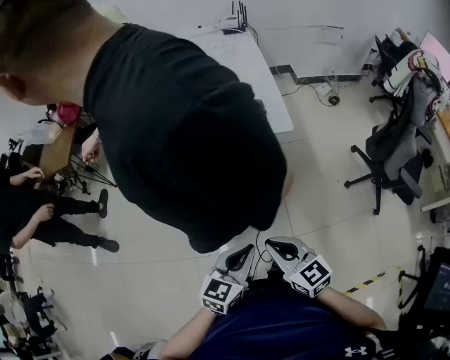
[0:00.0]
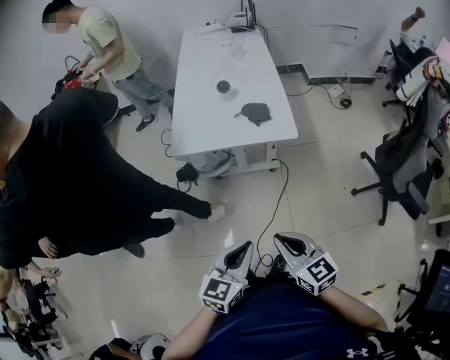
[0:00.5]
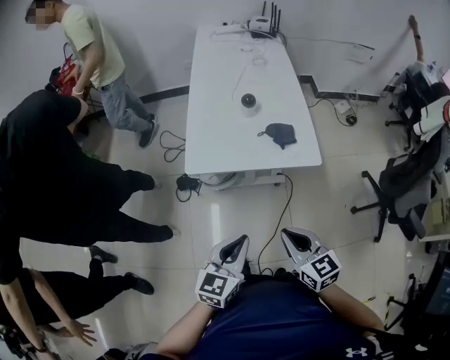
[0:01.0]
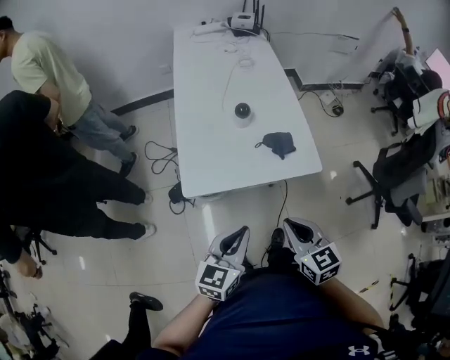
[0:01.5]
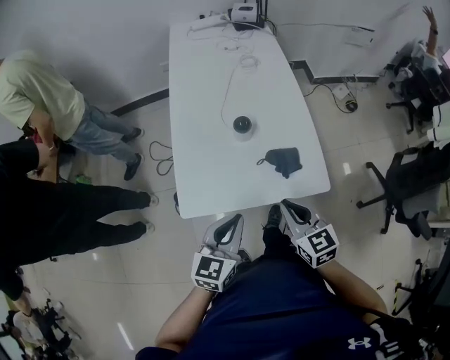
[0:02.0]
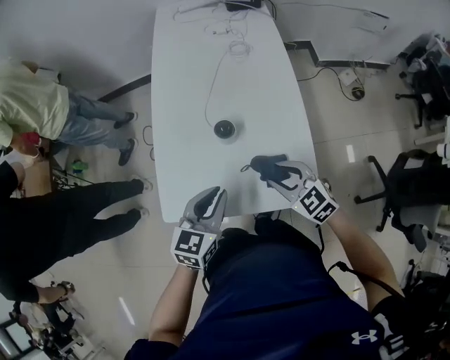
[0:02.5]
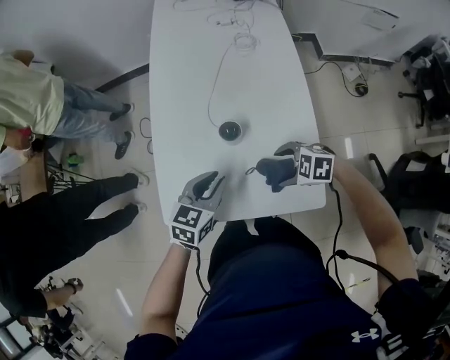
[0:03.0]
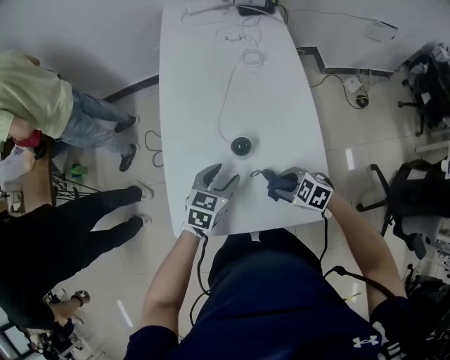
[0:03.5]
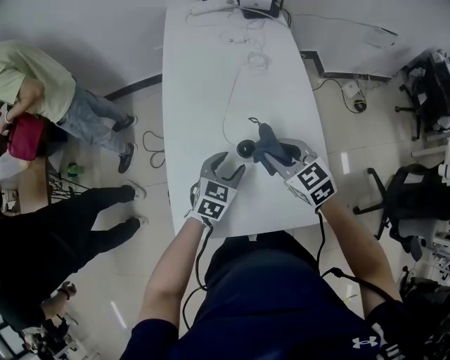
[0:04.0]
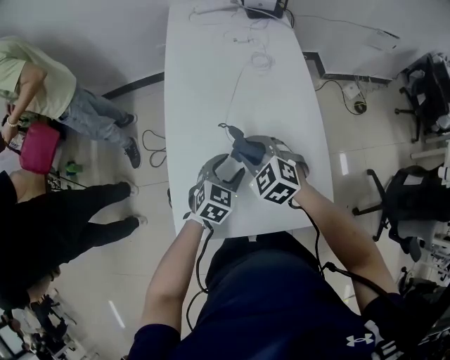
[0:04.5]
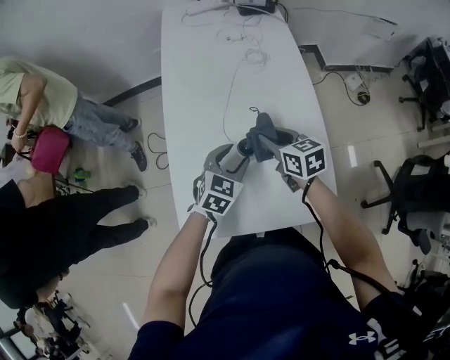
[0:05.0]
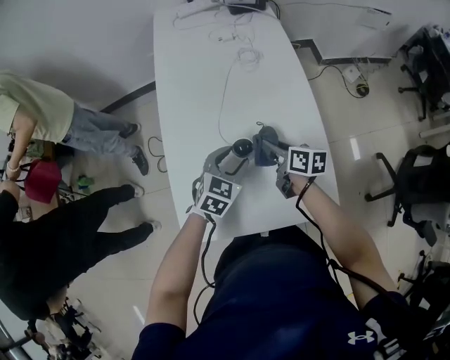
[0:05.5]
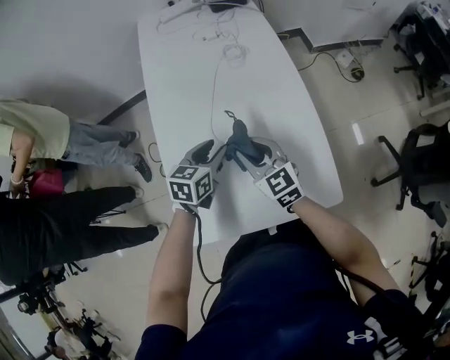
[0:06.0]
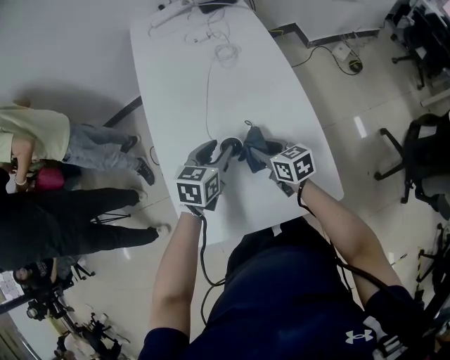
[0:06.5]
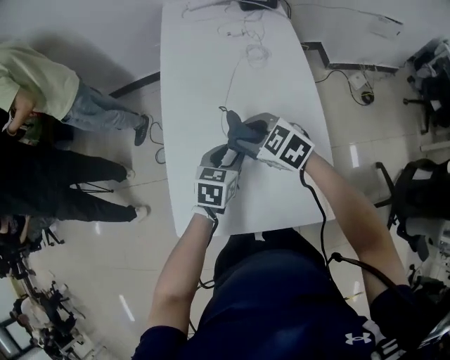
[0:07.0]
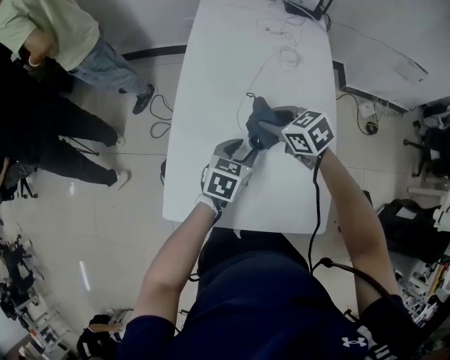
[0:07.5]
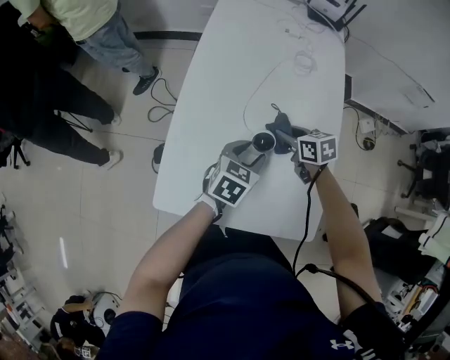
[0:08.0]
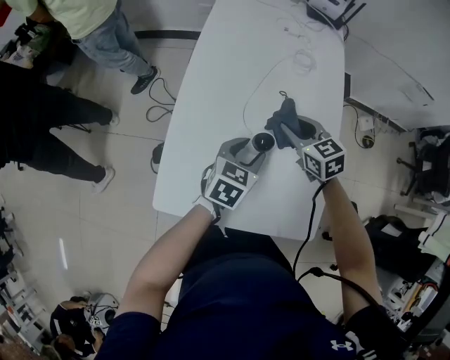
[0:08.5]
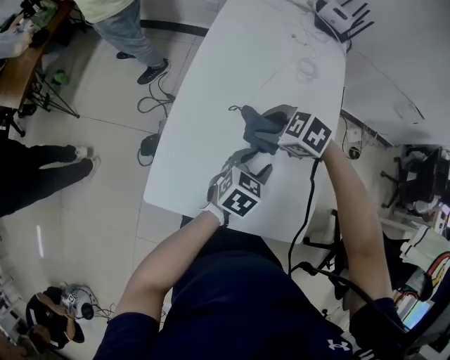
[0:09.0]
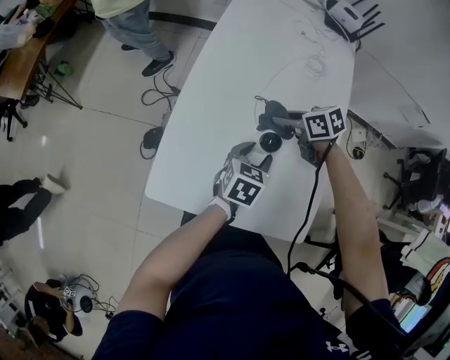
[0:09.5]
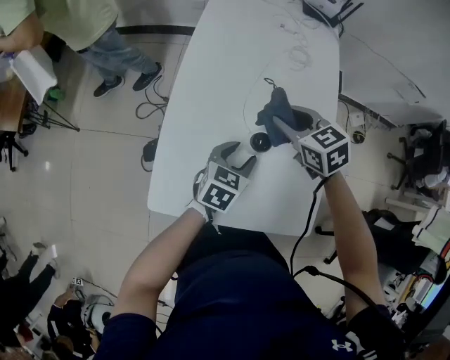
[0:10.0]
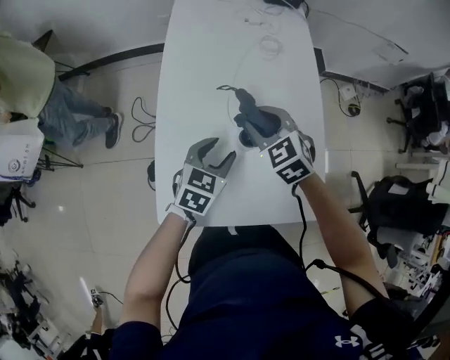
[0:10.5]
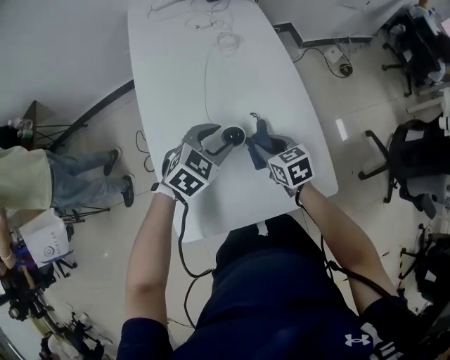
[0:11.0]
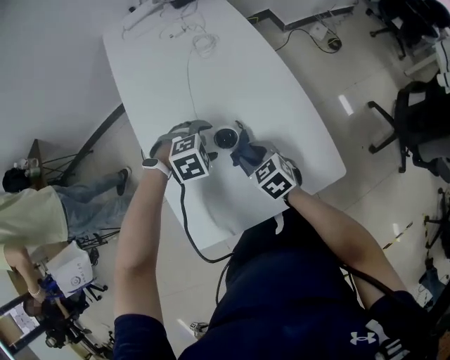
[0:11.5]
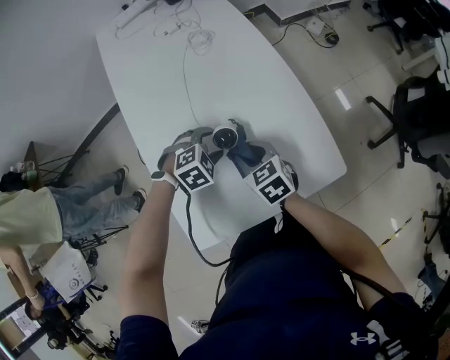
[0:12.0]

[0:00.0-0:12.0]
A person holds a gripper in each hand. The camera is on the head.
0:00.0 to 0:02.0: The pair of grippers is taken forward, roughly 40 cm.
0:02.0 to 0:04.0: The right gripper goes downward and returns, roughly 15 cm each way, changes its angle by roughly 20 degrees, and opens. Meanwhile the left gripper ends up approximately 30 cm from where it was, changes its angle by some 20 degrees, and opens up.
0:04.0 to 0:06.0: The left gripper ends up roughly 5 cm from where it was. The right gripper goes left and right, about 10 cm each way, reversing 2 times.
0:06.0 to 0:08.0: The left gripper moves about 5 cm. Meanwhile the right gripper swings up and down, approximately 10 cm each way, with 2 reversals, and rotates approximately 40 degrees.
0:08.0 to 0:10.0: The right gripper swings up and down, roughly 10 cm each way, with 2 reversals, and swivels about 20 degrees.
0:10.0 to 0:12.0: The left gripper shifts some 5 cm downward, and twists approximately 70 degrees clockwise, seen from behind. The right gripper moves roughly 15 cm, and turns by approximately 30 degrees.

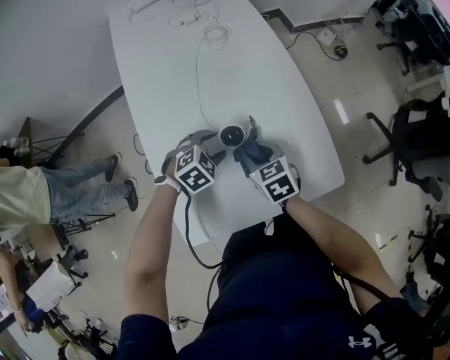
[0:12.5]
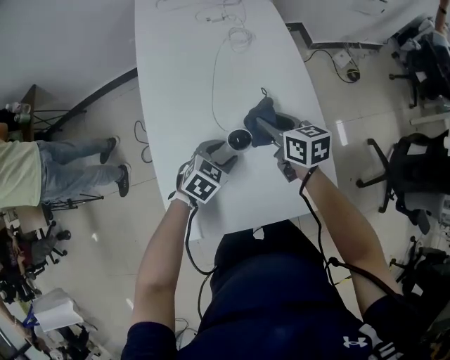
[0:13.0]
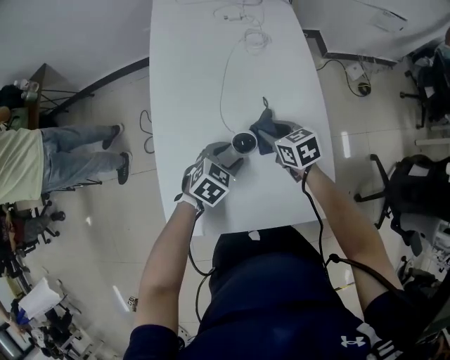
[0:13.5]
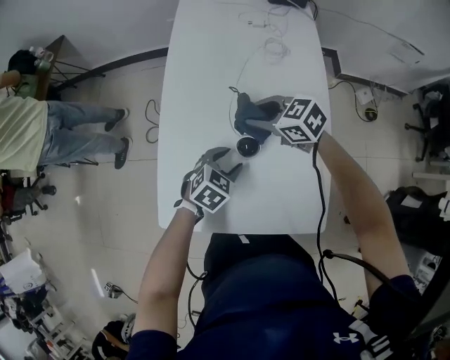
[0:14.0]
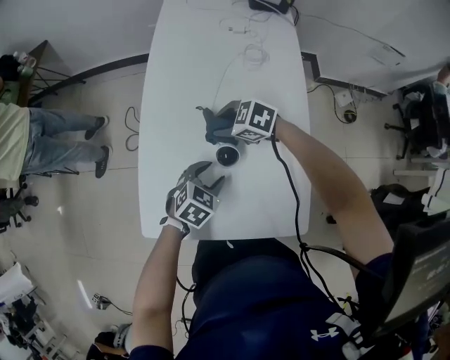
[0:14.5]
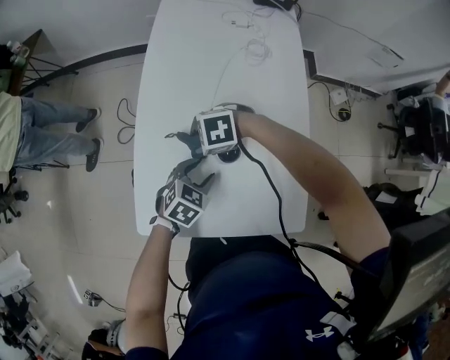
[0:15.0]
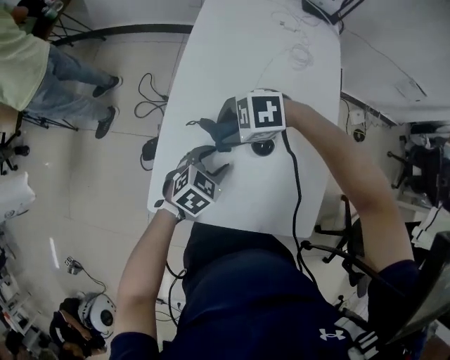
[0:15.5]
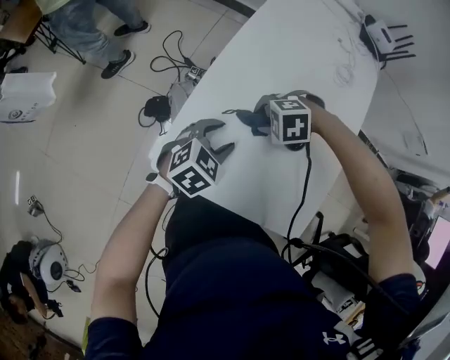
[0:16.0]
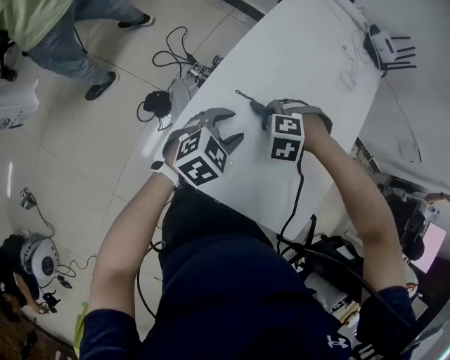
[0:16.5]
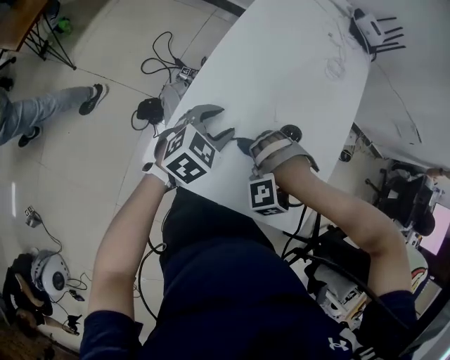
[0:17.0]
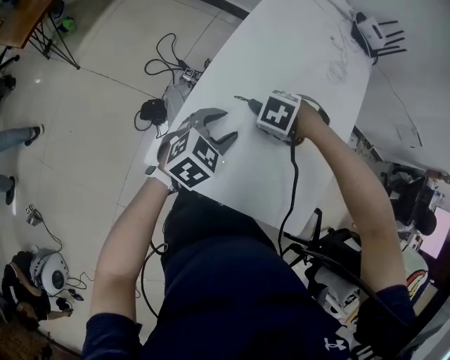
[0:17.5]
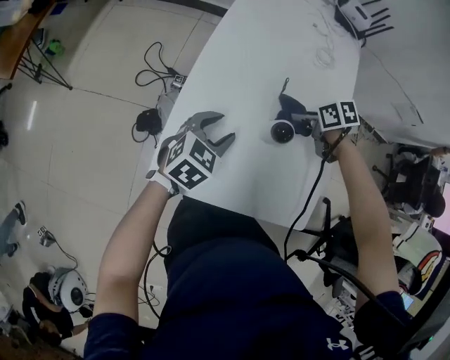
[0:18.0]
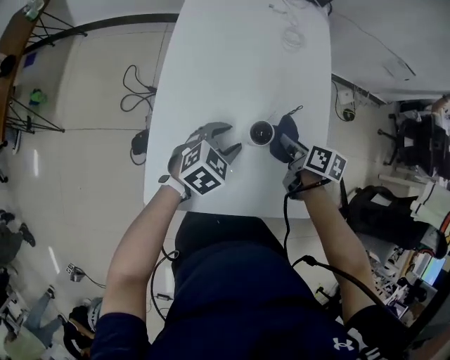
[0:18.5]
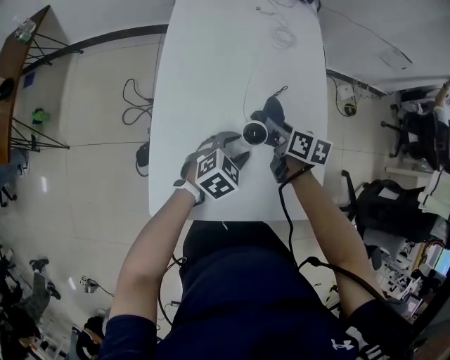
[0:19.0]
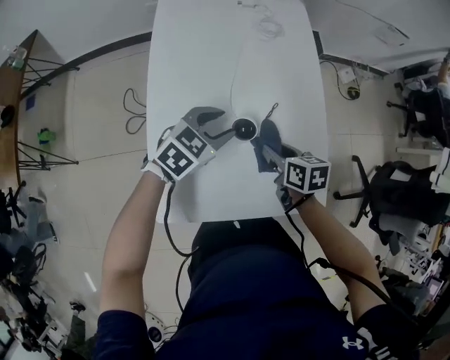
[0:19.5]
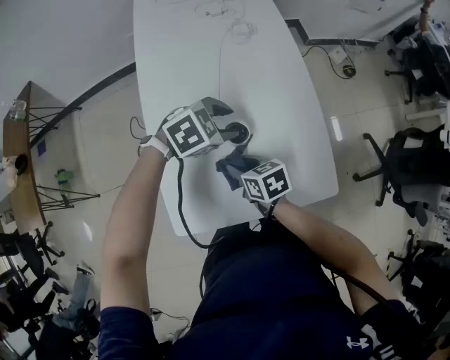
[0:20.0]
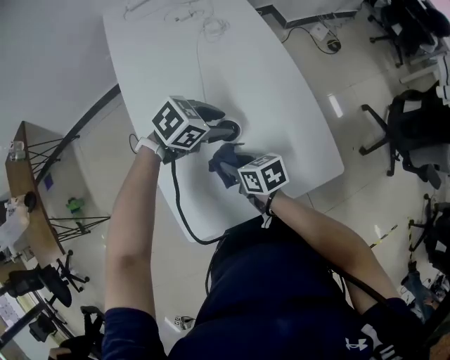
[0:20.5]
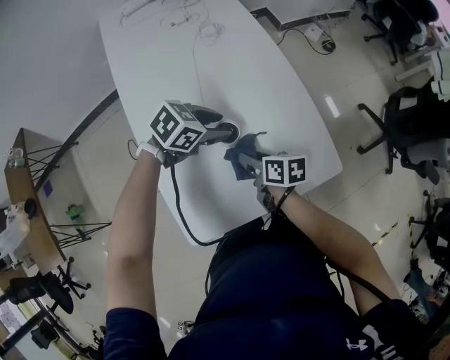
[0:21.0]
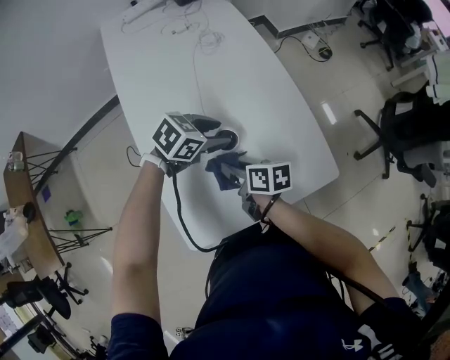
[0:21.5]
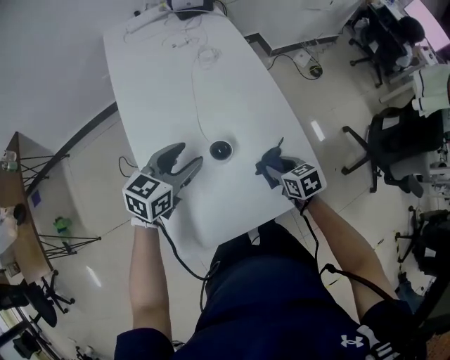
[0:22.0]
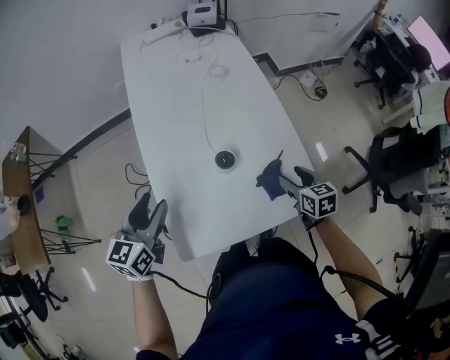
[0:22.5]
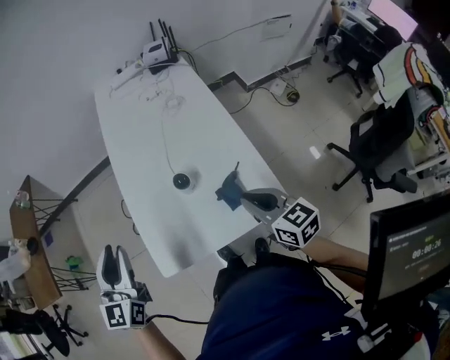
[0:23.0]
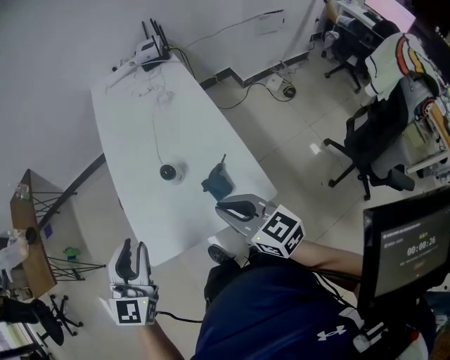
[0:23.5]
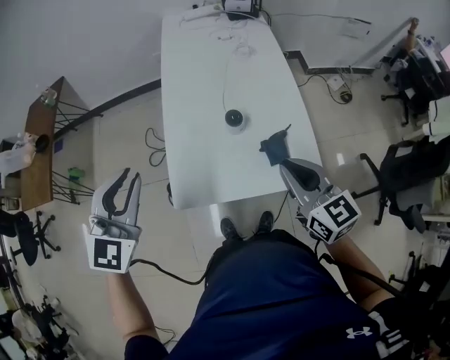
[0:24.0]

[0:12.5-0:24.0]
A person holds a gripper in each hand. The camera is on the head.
0:12.5 to 0:14.5: The left gripper rotates some 40 degrees; the right gripper goes up and down, some 10 cm each way, reversing 3 times, and swivels some 70 degrees.
0:14.5 to 0:16.5: The left gripper moves about 15 cm, while the right gripper shifts by roughly 10 cm, and tilts its fingers about 30 degrees downward.
0:16.5 to 0:18.5: The right gripper ends up roughly 20 cm from where it was, and rolls clockwise, seen from behind, by about 130 degrees. Meanwhile the left gripper ends up roughly 10 cm from where it was, and swivels approximately 20 degrees.
0:18.5 to 0:20.0: The right gripper shifts by some 15 cm. Meanwhile the left gripper moves some 10 cm, and swivels approximately 40 degrees.
0:20.0 to 0:22.0: The right gripper moves some 20 cm. Meanwhile the left gripper shifts by some 10 cm, and rotates some 40 degrees.
0:22.0 to 0:24.0: The right gripper moves upward, some 30 cm, angles its fingers upward, by roughly 40 degrees, and closes; the left gripper moves upward, backward and to the left, roughly 30 cm, turns by some 50 degrees, and closes up.

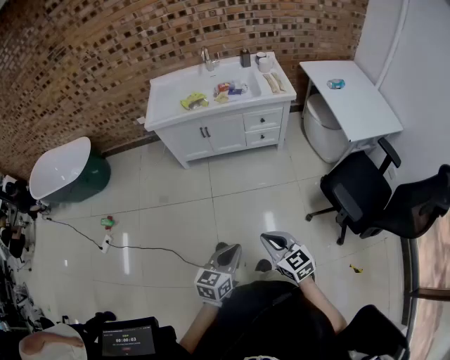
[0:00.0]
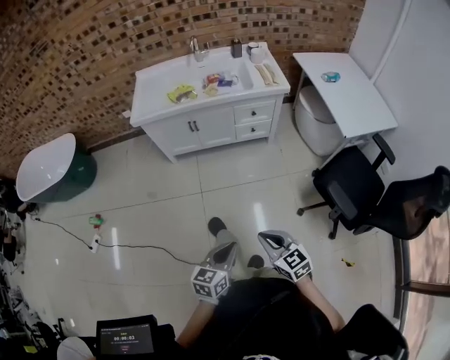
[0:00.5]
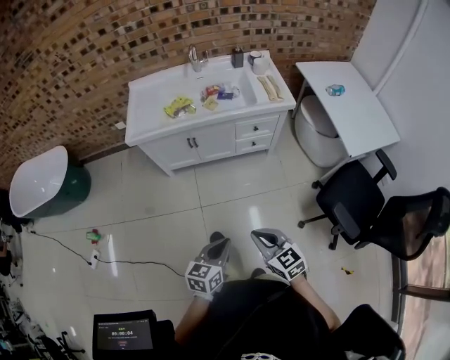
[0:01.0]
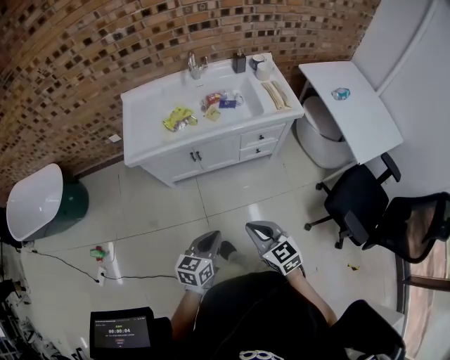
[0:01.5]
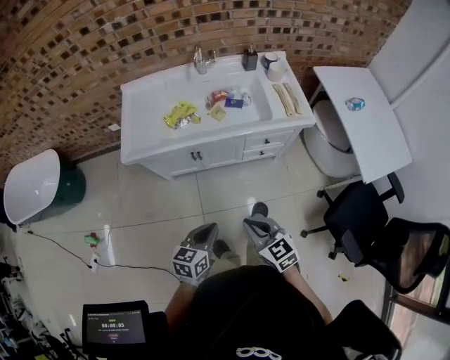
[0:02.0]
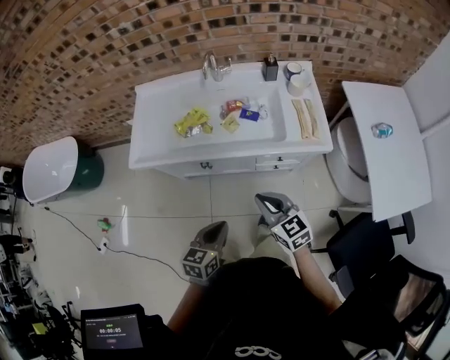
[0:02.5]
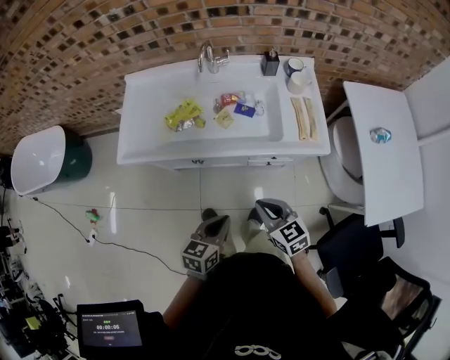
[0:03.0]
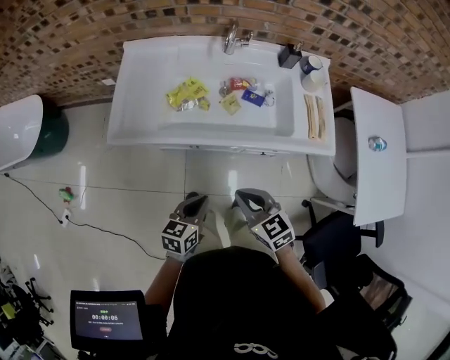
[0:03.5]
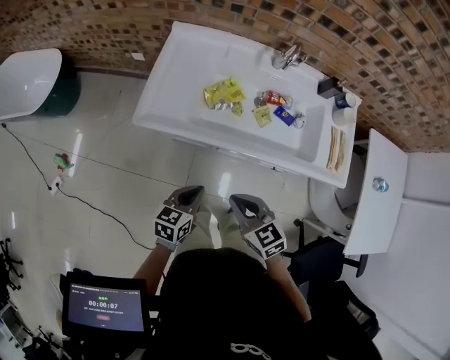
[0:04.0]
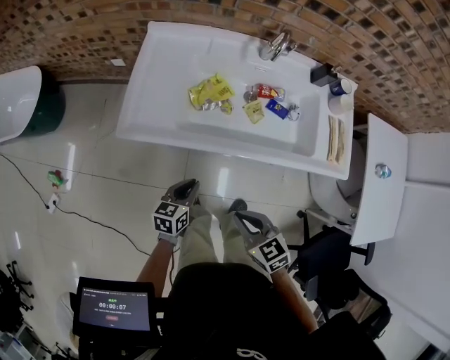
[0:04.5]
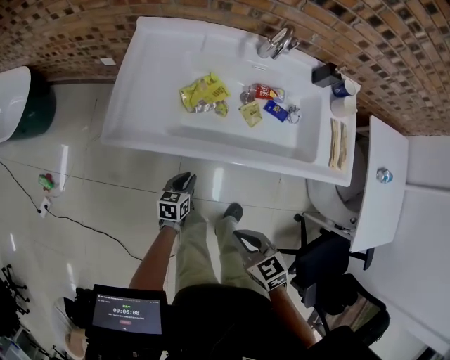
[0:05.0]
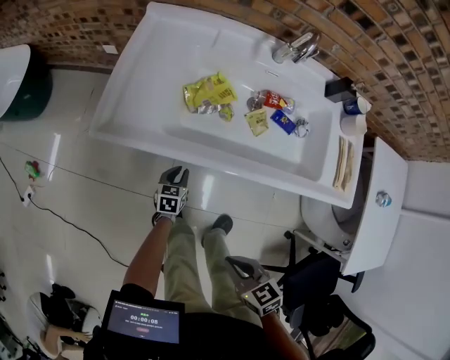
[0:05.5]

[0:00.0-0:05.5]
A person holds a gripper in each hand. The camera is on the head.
0:00.0 to 0:02.0: Both grippers are carried forward, roughly 40 cm.
0:02.0 to 0:03.5: The two grippers go roughly 20 cm forward.
0:03.5 to 0:05.5: The left gripper goes roughly 35 cm downward and forward; the right gripper travels downward, backward and to the left by some 15 cm.
